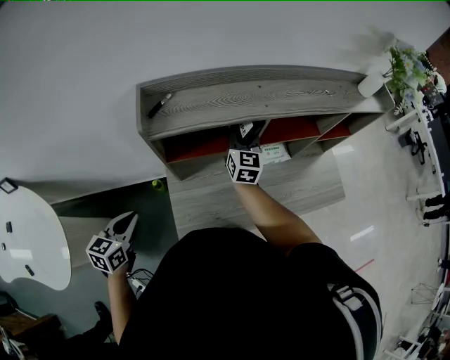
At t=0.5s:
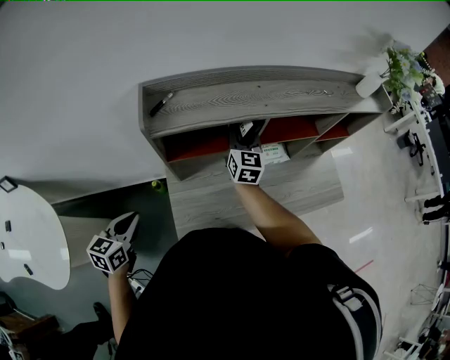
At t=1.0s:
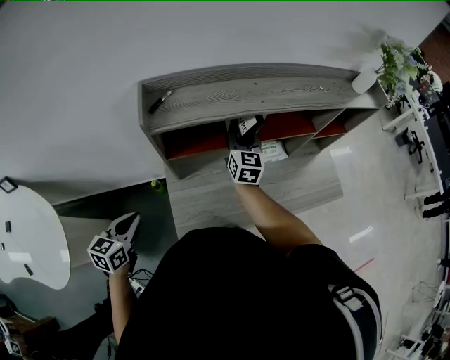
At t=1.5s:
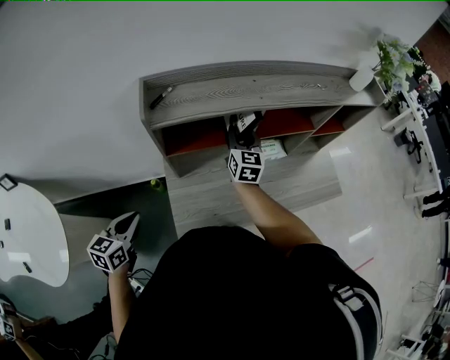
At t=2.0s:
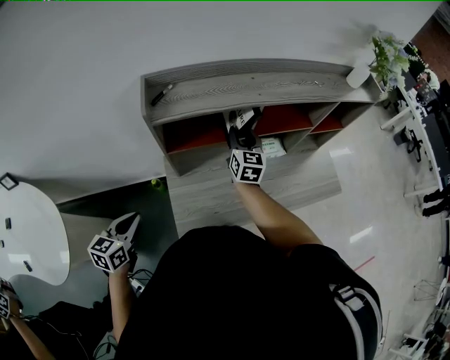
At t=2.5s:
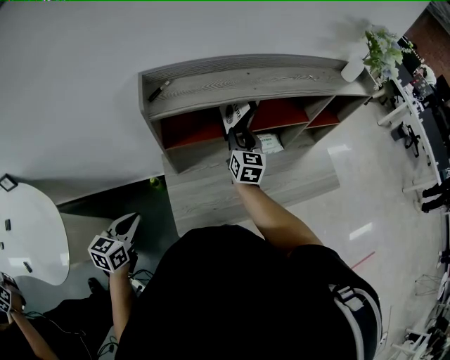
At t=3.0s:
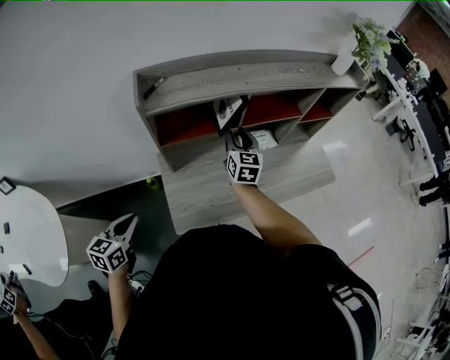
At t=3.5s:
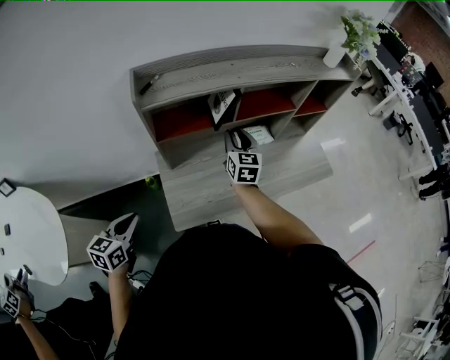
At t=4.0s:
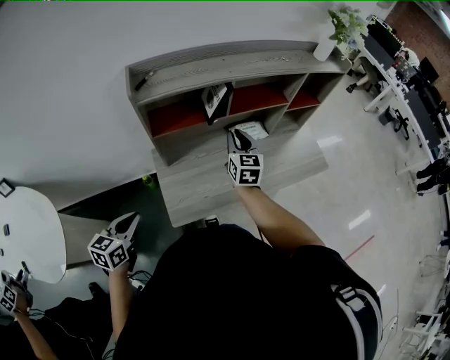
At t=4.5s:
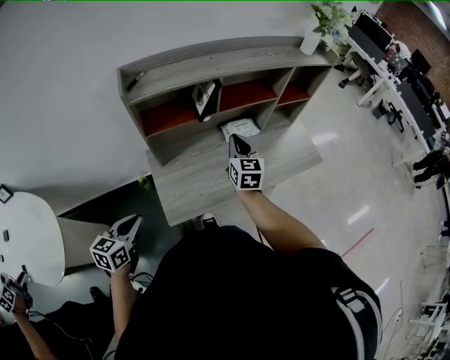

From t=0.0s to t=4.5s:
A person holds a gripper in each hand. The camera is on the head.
From t=0.0s to t=2.0s: The right gripper ends up some 5 cm from where it was, and opens its fingers.
From t=2.0s to t=4.5s: The right gripper travels backward and to the right by approximately 15 cm, and closes its fingers; the left gripper heads backward and to the right, covering roughly 10 cm.

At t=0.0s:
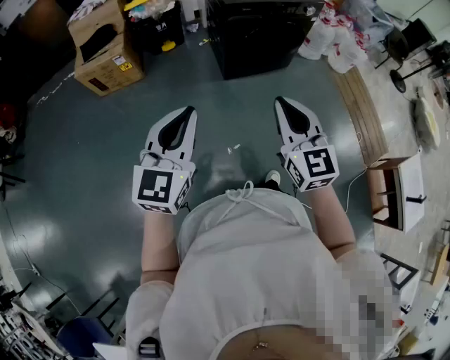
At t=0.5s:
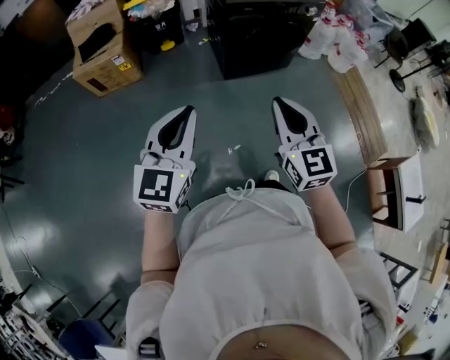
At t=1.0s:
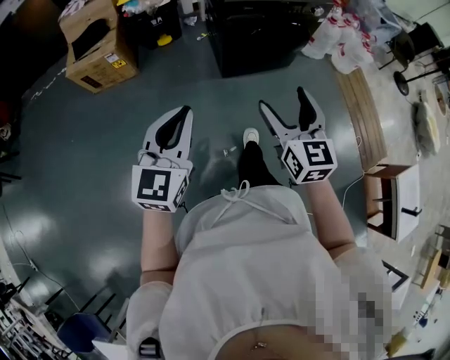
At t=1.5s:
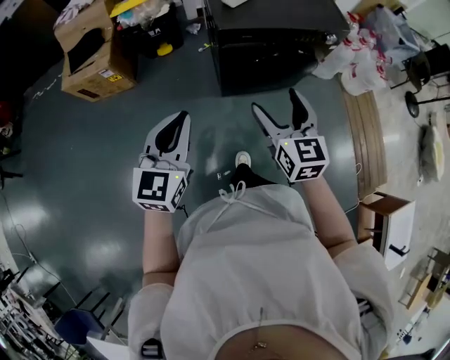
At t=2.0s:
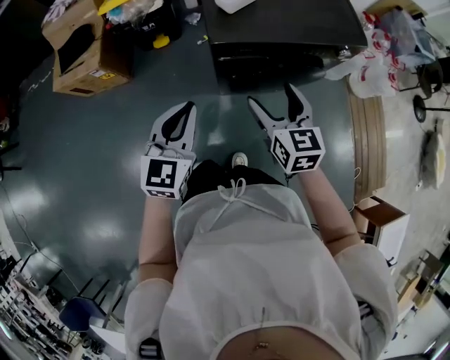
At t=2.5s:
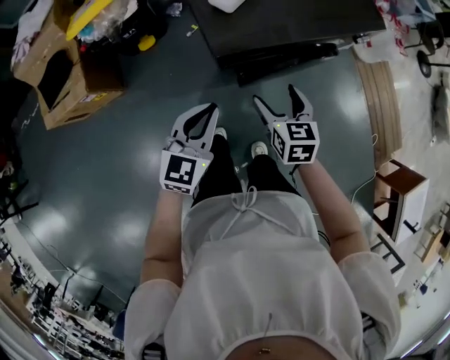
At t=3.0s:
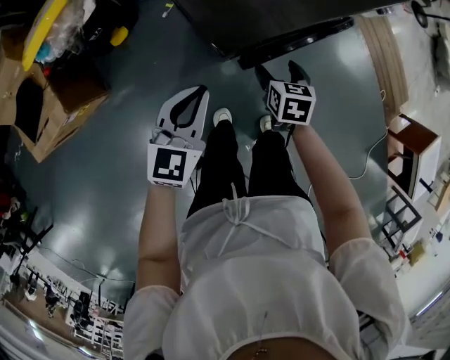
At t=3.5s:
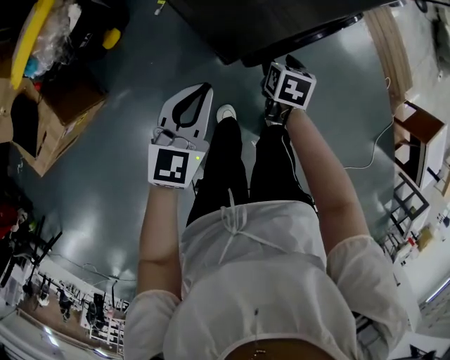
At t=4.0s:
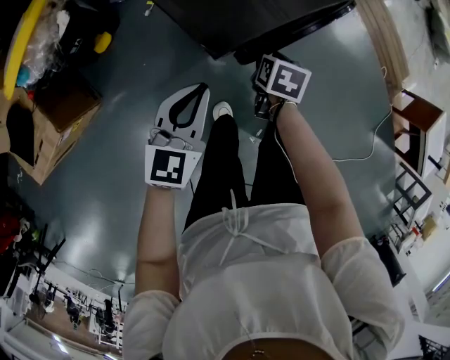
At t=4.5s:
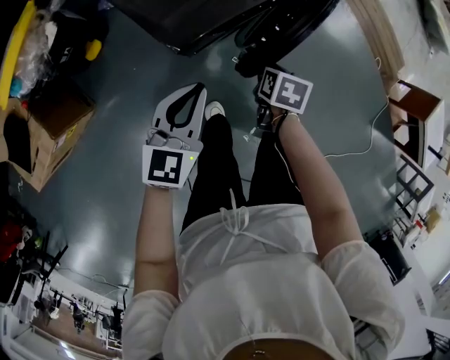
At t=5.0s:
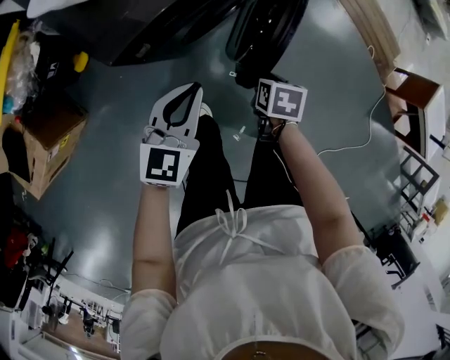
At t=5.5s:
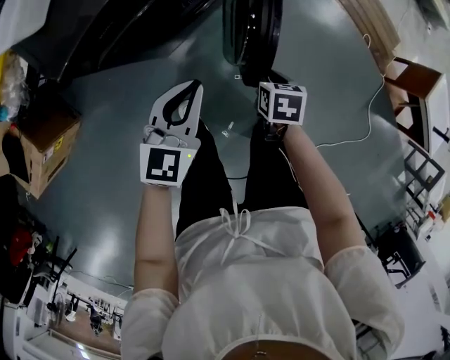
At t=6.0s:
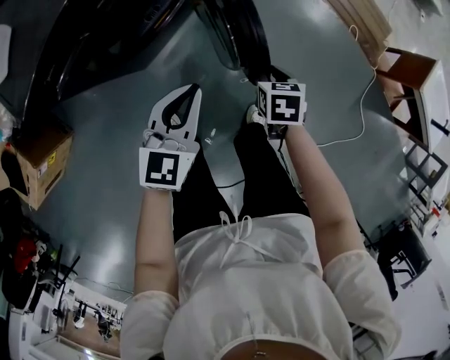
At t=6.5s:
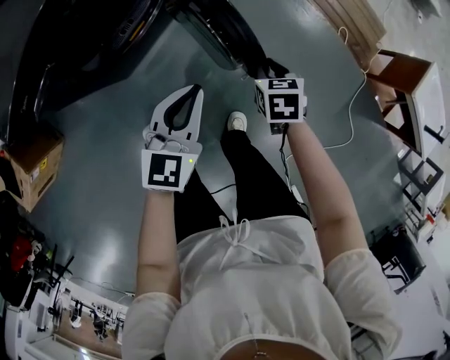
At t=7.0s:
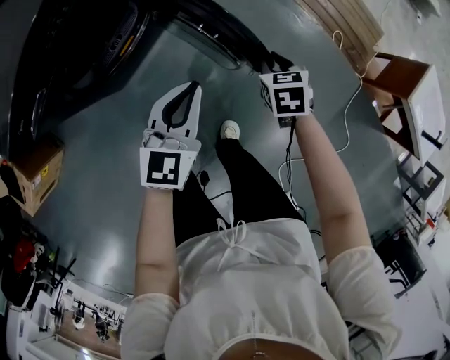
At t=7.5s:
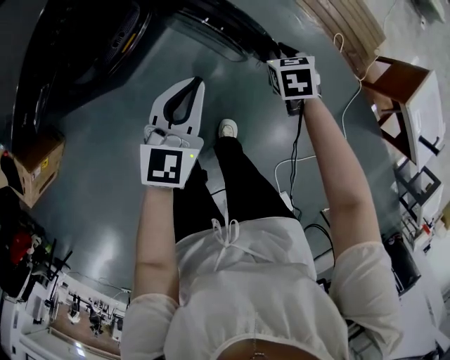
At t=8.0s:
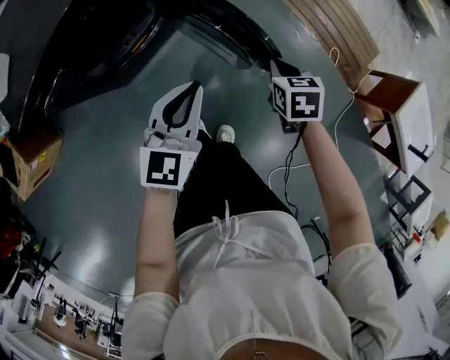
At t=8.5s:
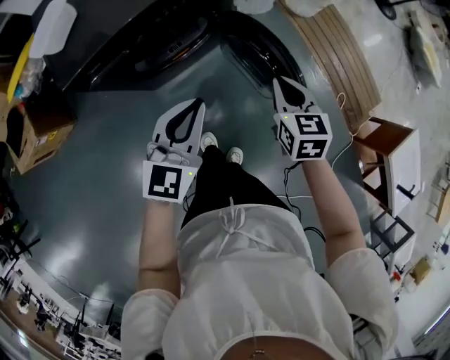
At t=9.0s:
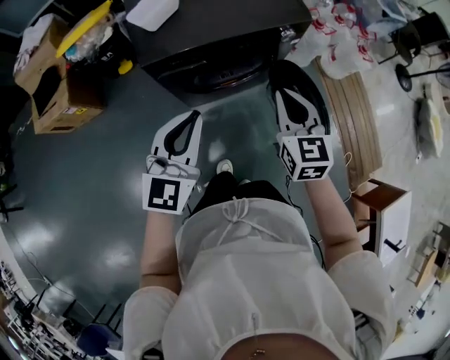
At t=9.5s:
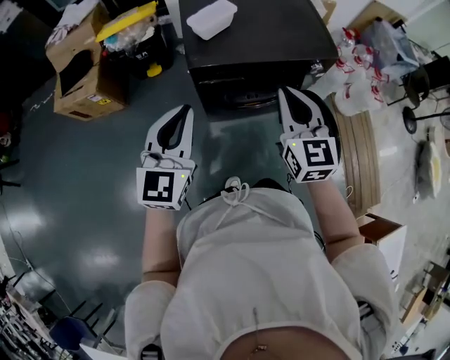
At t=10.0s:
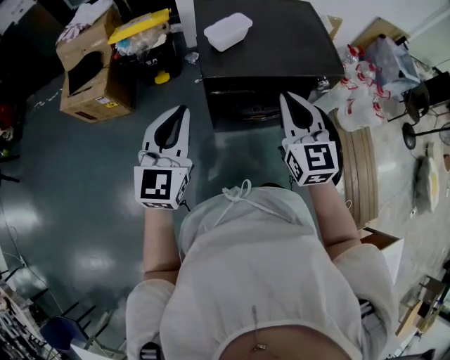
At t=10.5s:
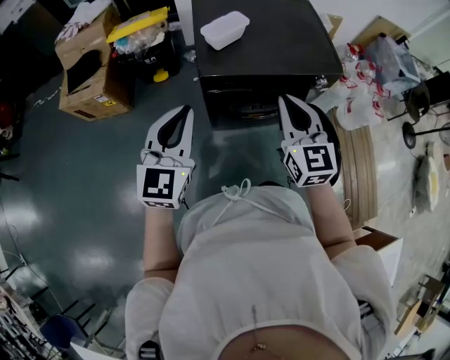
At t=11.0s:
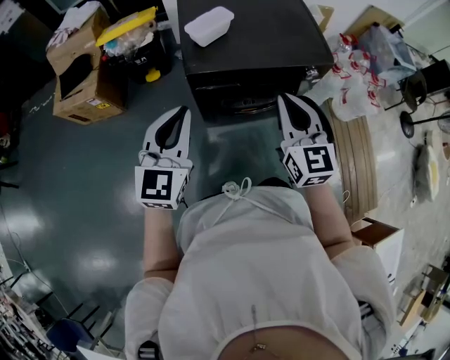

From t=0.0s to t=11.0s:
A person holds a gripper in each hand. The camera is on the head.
From t=0.0s to t=2.0s: The pair of grippers is taken forward, approximately 50 cm. The right gripper changes its angle by roughly 20 degrees, and opens up.
From t=2.0s to t=3.5s: The grippers both shift downward by approximately 30 cm. The left gripper turns by some 40 degrees. The right gripper tilts its fingers approximately 40 degrees downward, and closes its fingers.
From t=3.5s to t=5.5s: The two grippers go about 30 cm to the right. The right gripper closes its fingers.
From t=5.5s to t=7.5s: Both grippers travel together to the right and forward, approximately 35 cm.
From t=7.5s to t=9.0s: The left gripper shifts by approximately 40 cm, and swivels approximately 30 degrees, while the right gripper is displaced upward by about 40 cm, and angles its fingers upward, by approximately 40 degrees.
From t=9.0s to t=11.0s: The grippers both shift to the left and upward by about 15 cm.

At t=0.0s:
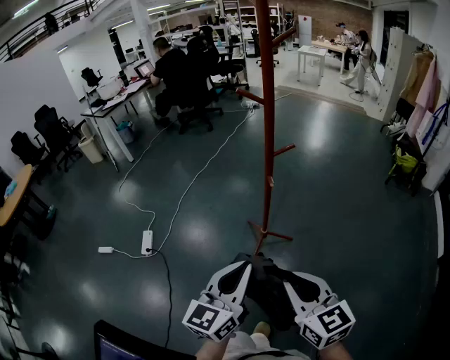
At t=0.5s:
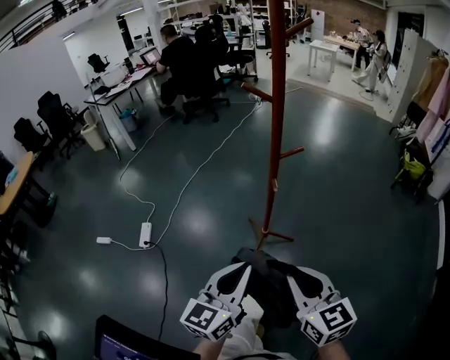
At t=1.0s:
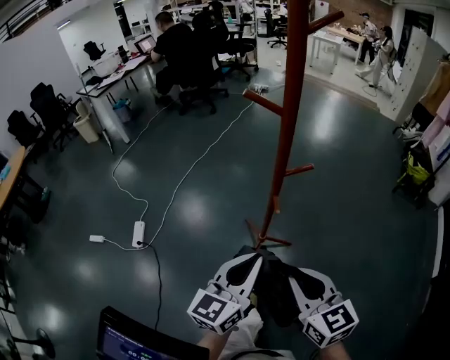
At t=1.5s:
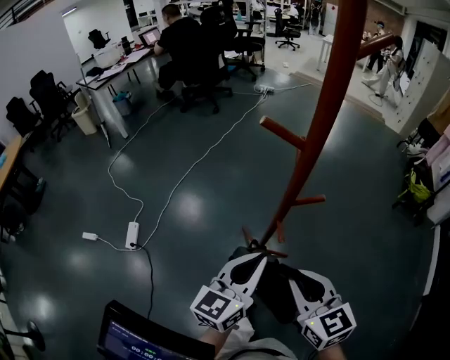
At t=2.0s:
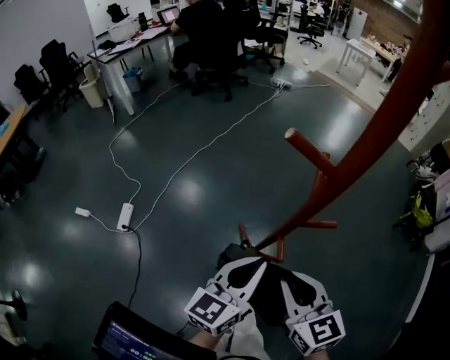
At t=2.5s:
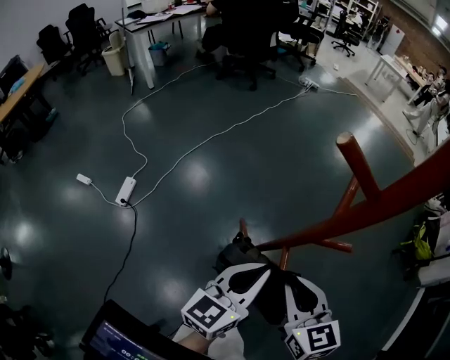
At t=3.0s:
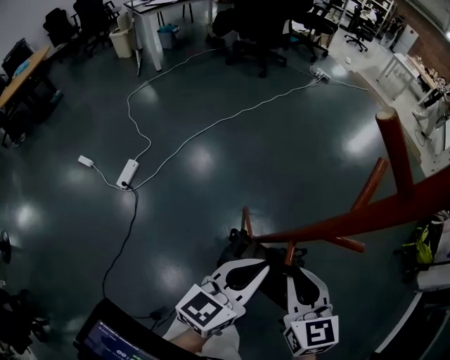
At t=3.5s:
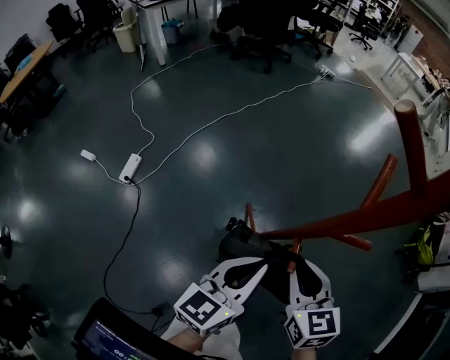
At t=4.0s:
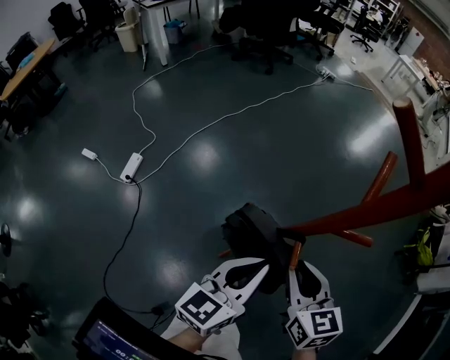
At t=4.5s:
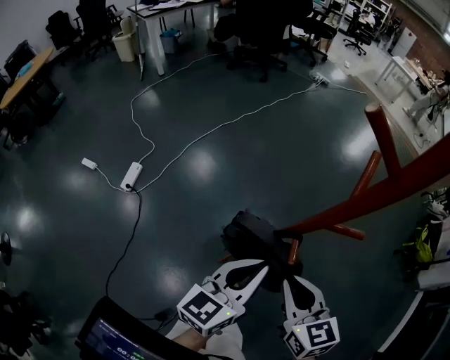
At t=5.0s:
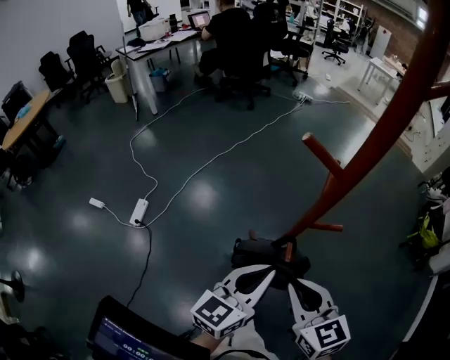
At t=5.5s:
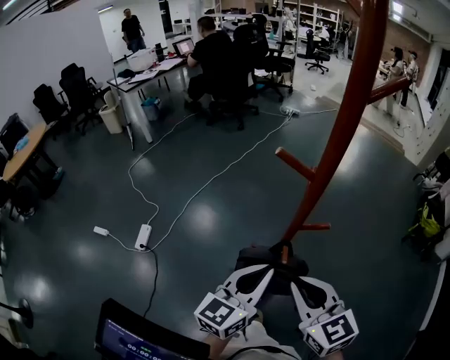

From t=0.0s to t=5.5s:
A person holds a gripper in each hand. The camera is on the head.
From t=0.0s to t=2.0s: The grippers both shift forward by some 35 cm.
From t=2.0s to t=3.5s: The right gripper goes roughly 10 cm downward and forward. The left gripper heads downward, covering some 10 cm.
From t=3.5s to t=5.5s: Both grippers move upward and backward, some 15 cm.

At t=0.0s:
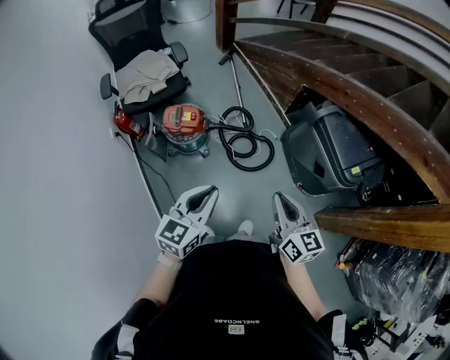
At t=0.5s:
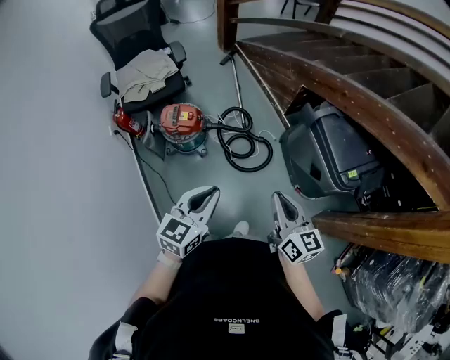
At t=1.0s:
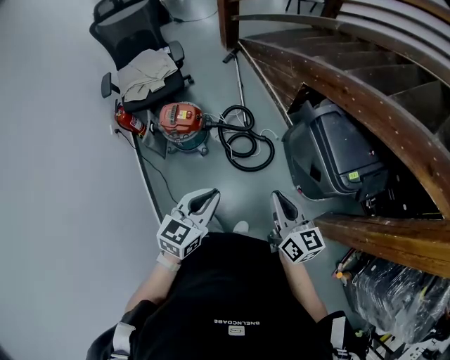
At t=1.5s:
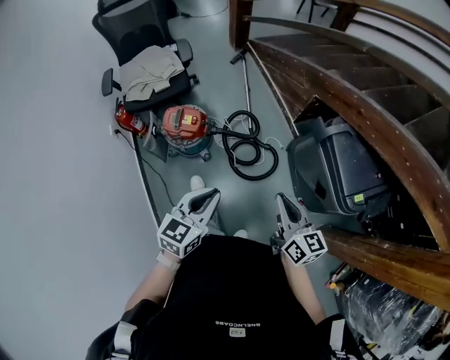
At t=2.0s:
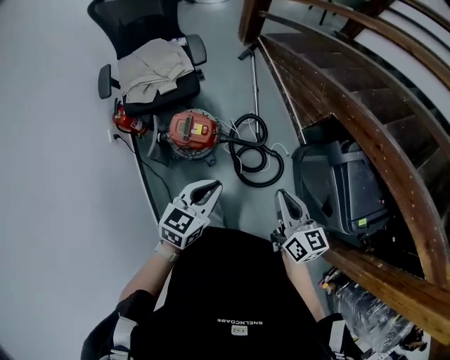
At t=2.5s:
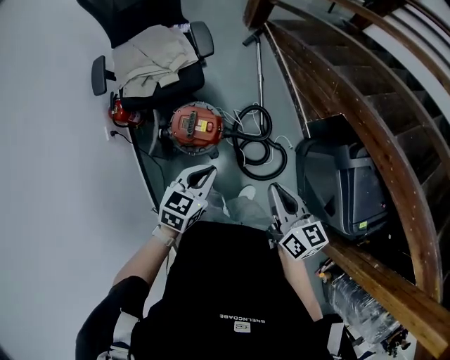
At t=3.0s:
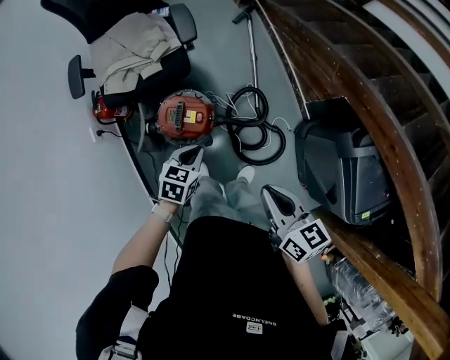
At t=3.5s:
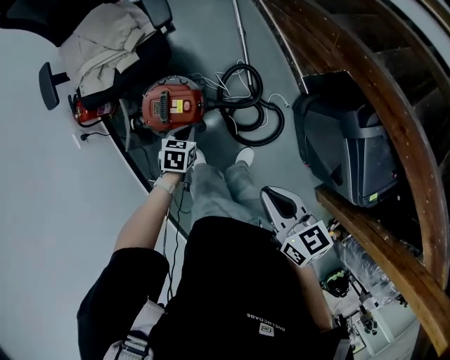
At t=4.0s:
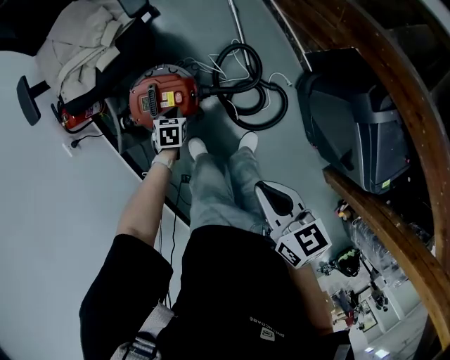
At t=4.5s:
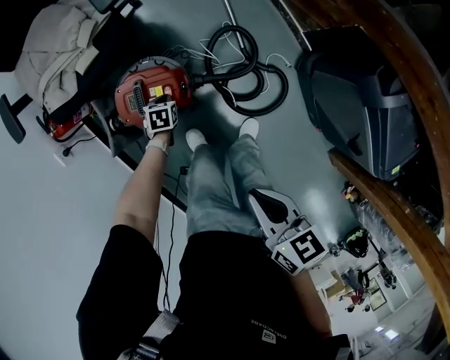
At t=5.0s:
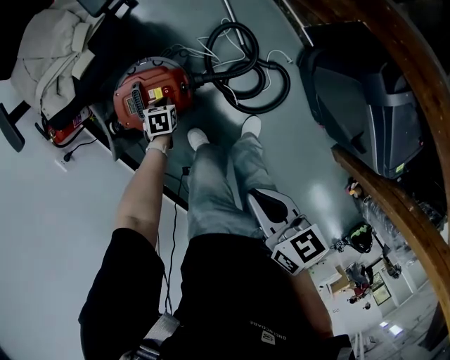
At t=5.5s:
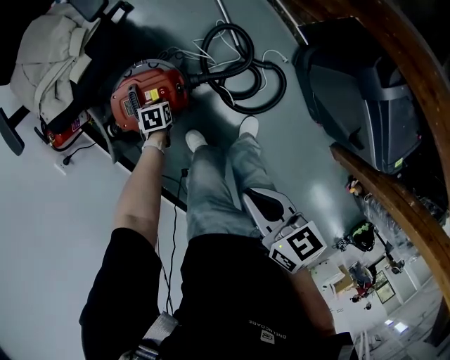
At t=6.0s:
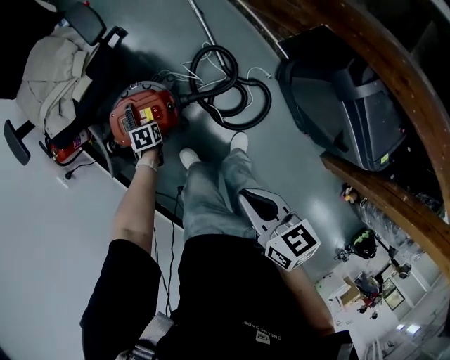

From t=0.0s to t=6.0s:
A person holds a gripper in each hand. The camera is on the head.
From t=0.0s to t=2.0s: Both grippers move forward and to the left, some 30 cm.
From t=2.0s to t=4.0s: The right gripper heads downward, forward and to the left, covering roughly 25 cm, and turns by roughly 30 degrees; the left gripper is displaced downward and forward by about 60 cm, and angles its fingers downward, by approximately 40 degrees.
From t=4.0s to t=6.0s: The left gripper is displaced downward by approximately 5 cm.
